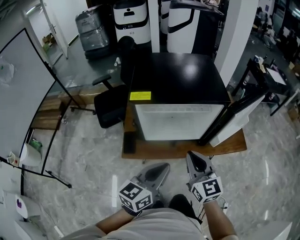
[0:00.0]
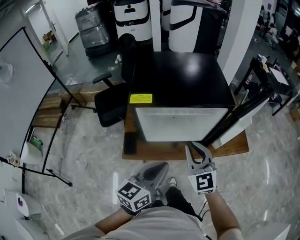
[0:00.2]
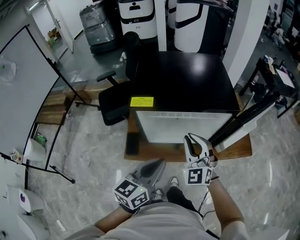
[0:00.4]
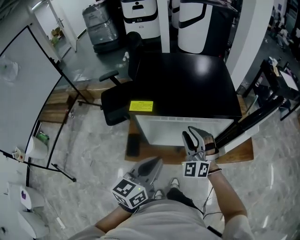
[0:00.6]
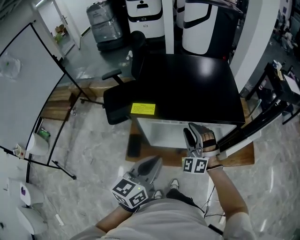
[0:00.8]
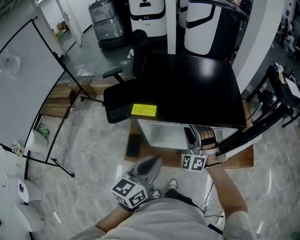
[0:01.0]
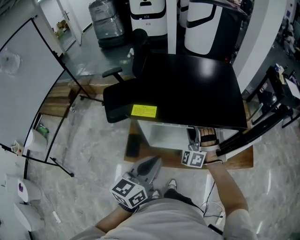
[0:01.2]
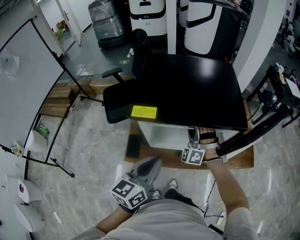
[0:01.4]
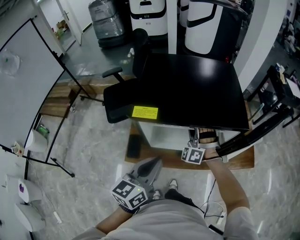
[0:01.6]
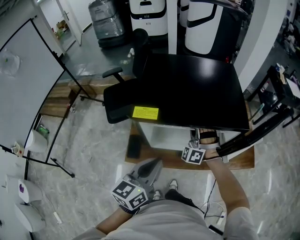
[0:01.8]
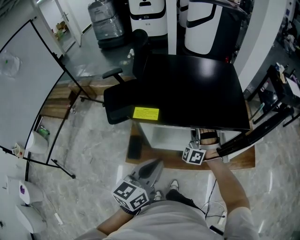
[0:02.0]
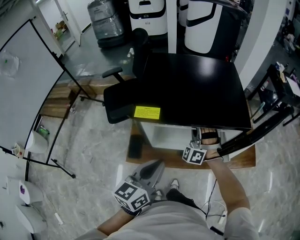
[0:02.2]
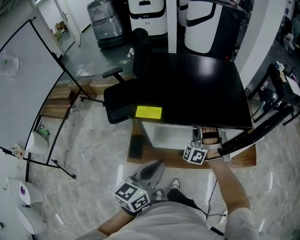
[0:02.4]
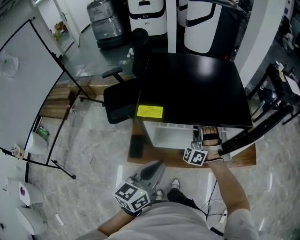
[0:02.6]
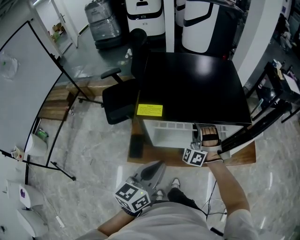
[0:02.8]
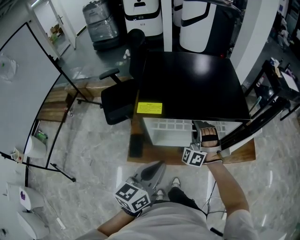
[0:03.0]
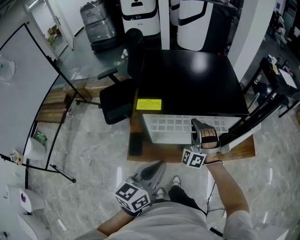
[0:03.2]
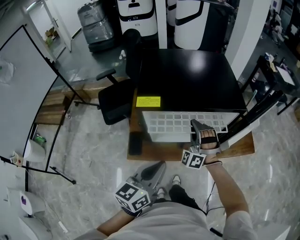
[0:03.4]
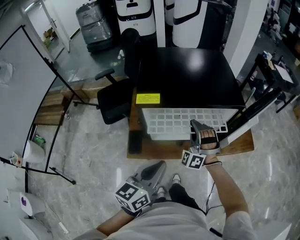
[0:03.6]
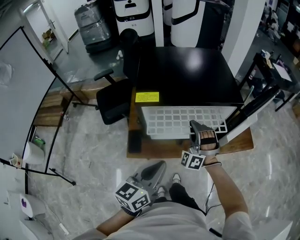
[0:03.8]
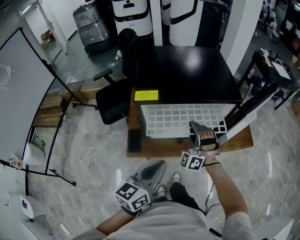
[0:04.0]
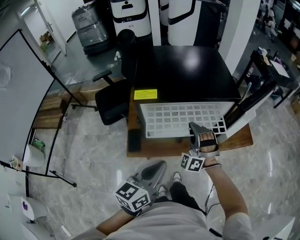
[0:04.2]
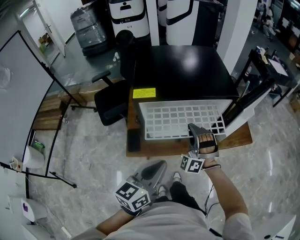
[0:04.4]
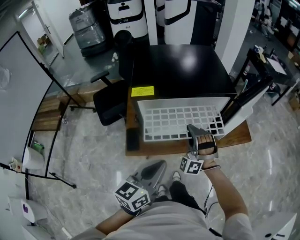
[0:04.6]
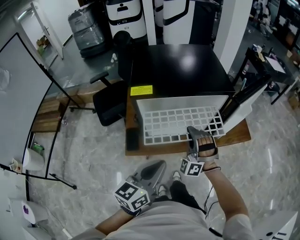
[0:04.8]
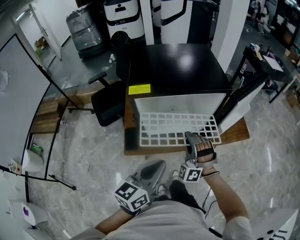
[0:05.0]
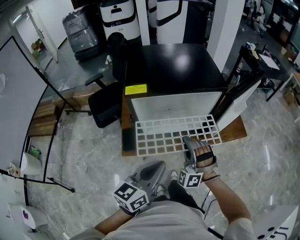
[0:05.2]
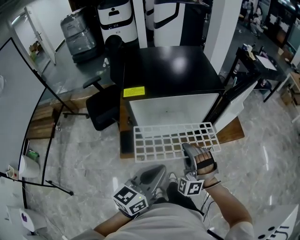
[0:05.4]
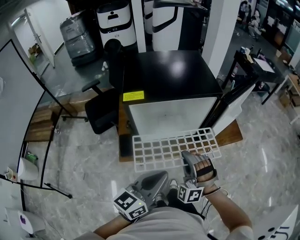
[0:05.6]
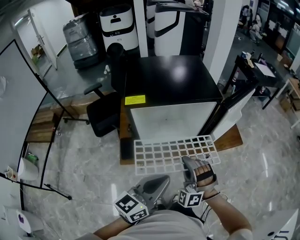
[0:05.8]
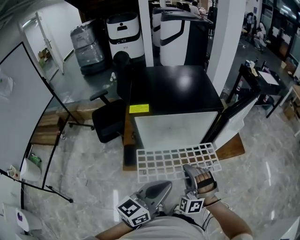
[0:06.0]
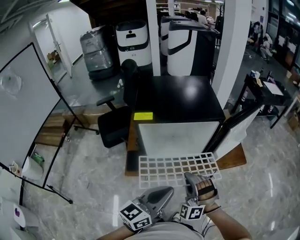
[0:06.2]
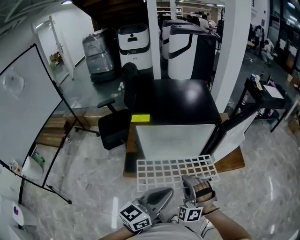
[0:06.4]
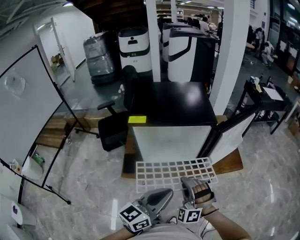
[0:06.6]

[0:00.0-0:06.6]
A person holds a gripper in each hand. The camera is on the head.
0:00.0 to 0:01.6: The right gripper heads forward, covering about 25 cm, rolls counterclockwise, seen from behind, by about 80 degrees, and opens its fingers; the left gripper goes roughly 10 cm forward and to the left.
0:01.6 to 0:03.2: The right gripper shifts approximately 5 cm backward, and closes.
0:03.2 to 0:05.0: The right gripper shifts some 15 cm backward. Meanwhile the left gripper heads backward, covering about 5 cm.
0:05.0 to 0:06.6: The left gripper is displaced to the right and upward by roughly 10 cm, while the right gripper heads backward and to the right, covering some 10 cm.

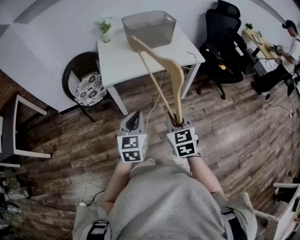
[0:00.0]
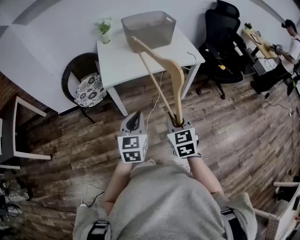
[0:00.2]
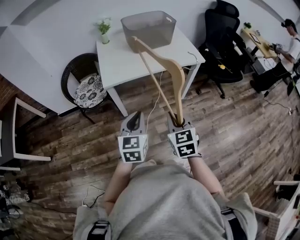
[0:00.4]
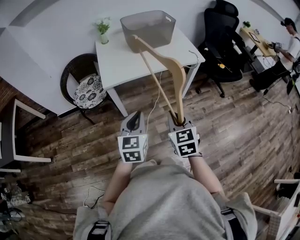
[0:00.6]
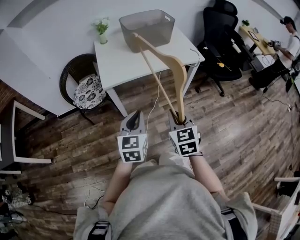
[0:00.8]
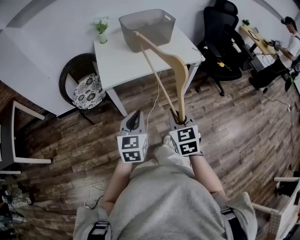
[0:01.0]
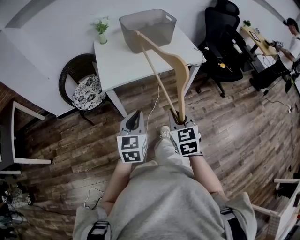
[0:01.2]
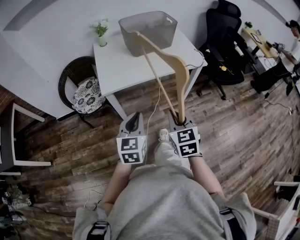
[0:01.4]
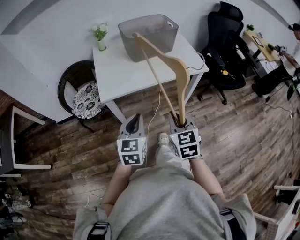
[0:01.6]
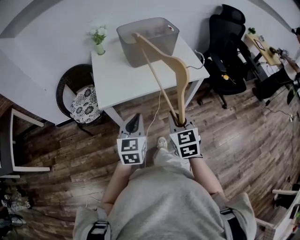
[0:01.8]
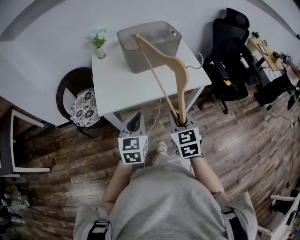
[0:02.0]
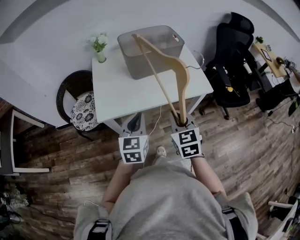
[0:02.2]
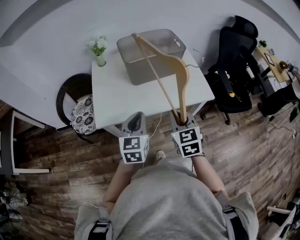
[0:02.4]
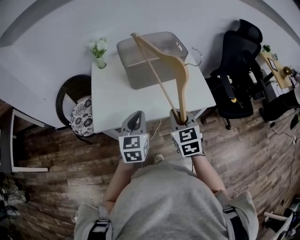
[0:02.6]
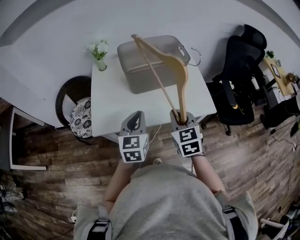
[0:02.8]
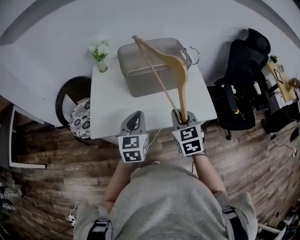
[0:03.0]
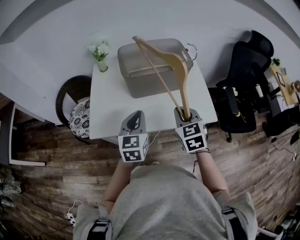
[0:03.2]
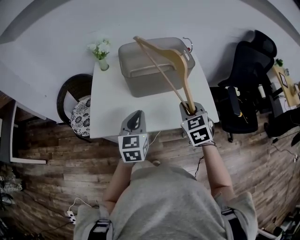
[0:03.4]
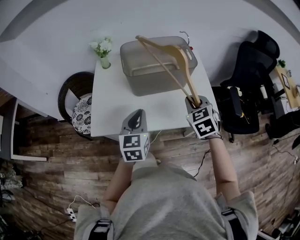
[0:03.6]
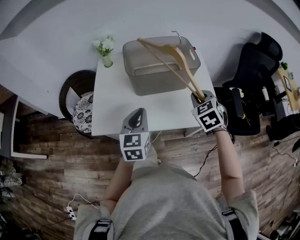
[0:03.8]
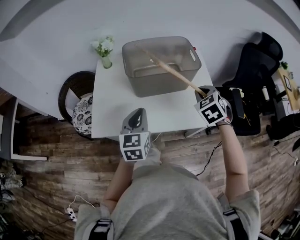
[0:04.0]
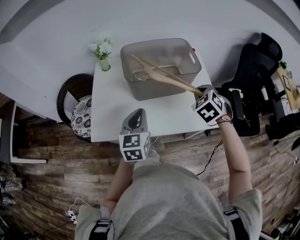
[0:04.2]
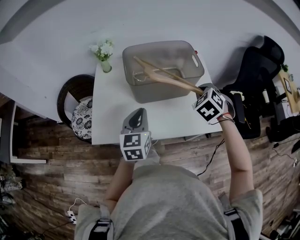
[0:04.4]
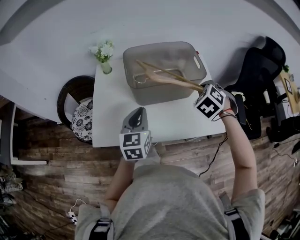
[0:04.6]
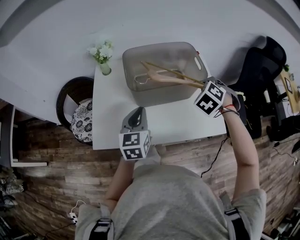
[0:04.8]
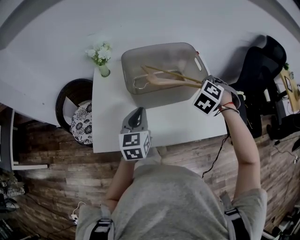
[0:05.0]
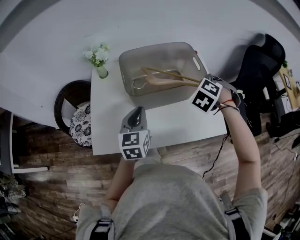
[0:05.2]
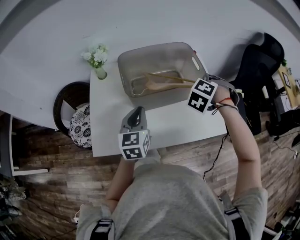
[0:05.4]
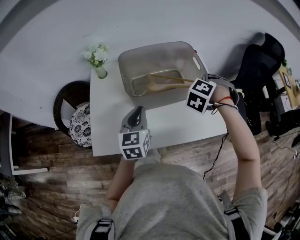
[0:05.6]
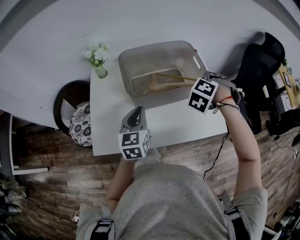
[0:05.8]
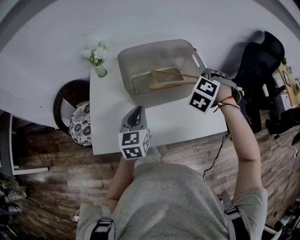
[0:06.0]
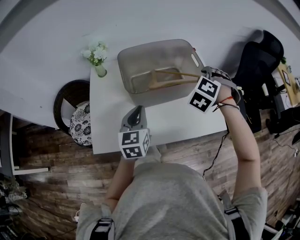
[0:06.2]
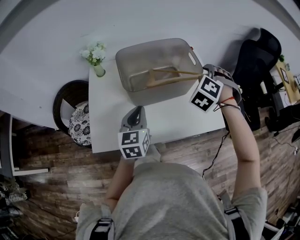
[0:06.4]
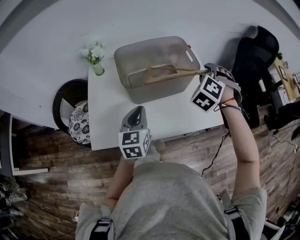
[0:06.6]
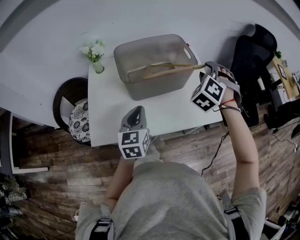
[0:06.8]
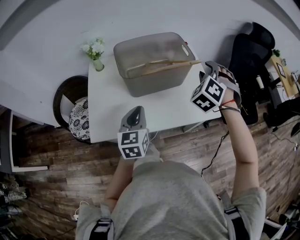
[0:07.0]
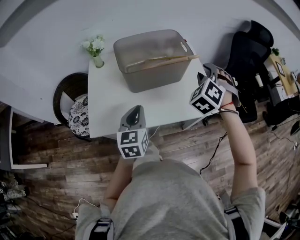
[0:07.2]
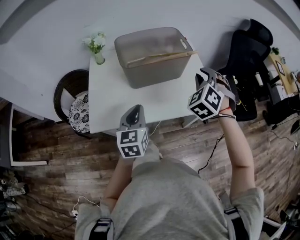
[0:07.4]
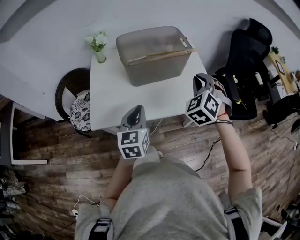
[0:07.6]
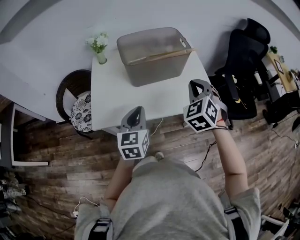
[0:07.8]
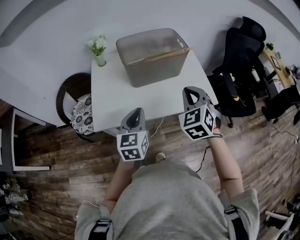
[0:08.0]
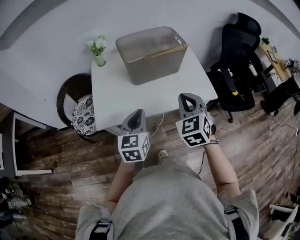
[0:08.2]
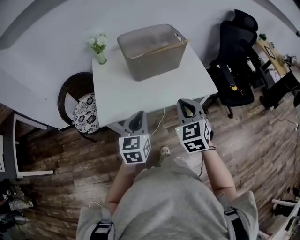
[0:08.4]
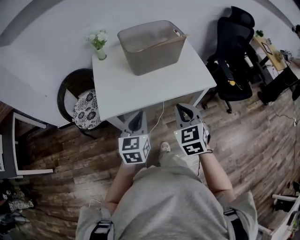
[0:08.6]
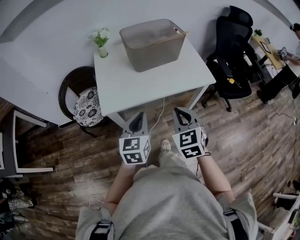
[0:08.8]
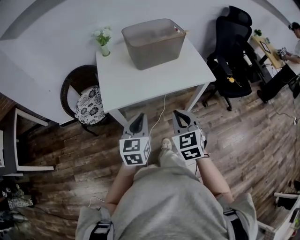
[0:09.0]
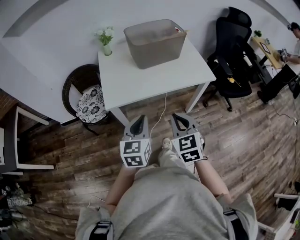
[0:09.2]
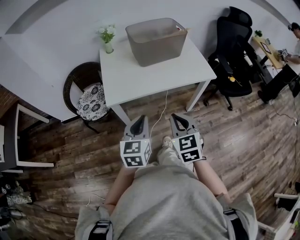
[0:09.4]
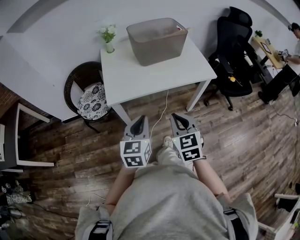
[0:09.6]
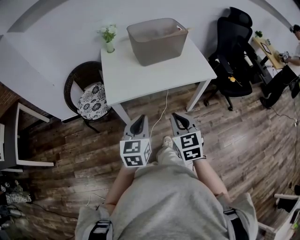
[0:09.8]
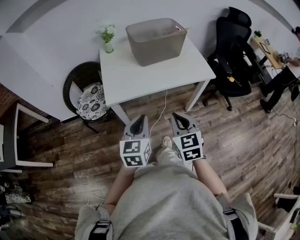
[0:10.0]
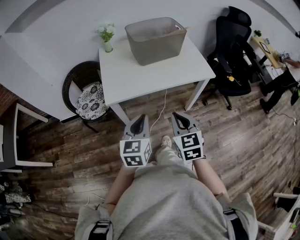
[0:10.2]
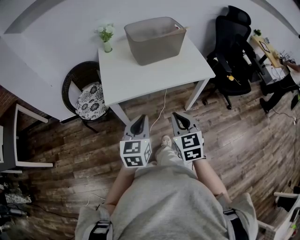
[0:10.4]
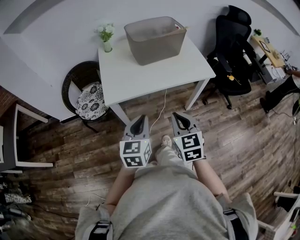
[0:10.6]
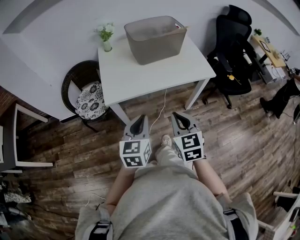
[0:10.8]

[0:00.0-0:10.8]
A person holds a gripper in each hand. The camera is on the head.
0:00.0 to 0:01.6: The two grippers go about 10 cm forward.
0:01.6 to 0:03.0: The two grippers go about 30 cm forward.
0:03.0 to 0:04.6: The left gripper moves forward, roughly 10 cm. The right gripper shifts roughly 20 cm forward and to the right, and swivels about 50 degrees.
0:04.6 to 0:06.2: The right gripper ends up about 5 cm from where it was, and opens.
0:06.2 to 0:07.8: The grippers both shift backward by roughly 20 cm. The right gripper turns by roughly 30 degrees, and closes its fingers.
0:07.8 to 0:09.2: The right gripper goes some 35 cm backward and to the left, and turns by some 30 degrees; the left gripper heads backward, covering approximately 20 cm.
0:09.2 to 0:10.8: The grippers make only small movements.

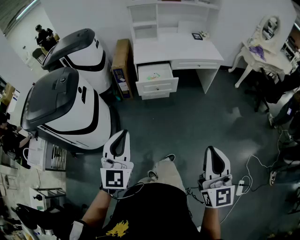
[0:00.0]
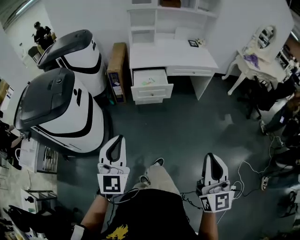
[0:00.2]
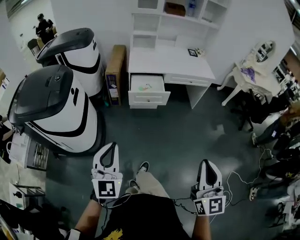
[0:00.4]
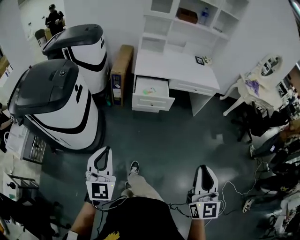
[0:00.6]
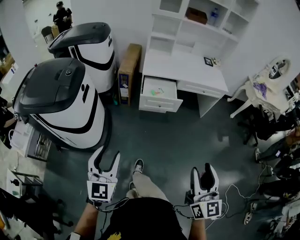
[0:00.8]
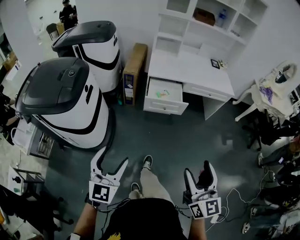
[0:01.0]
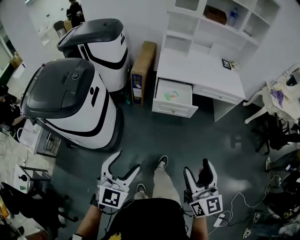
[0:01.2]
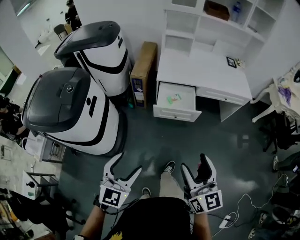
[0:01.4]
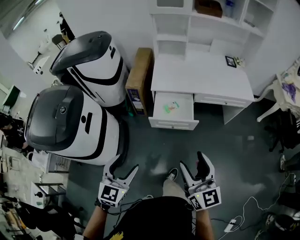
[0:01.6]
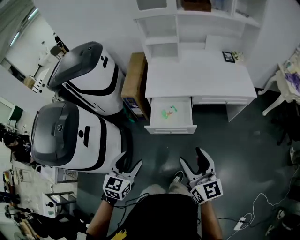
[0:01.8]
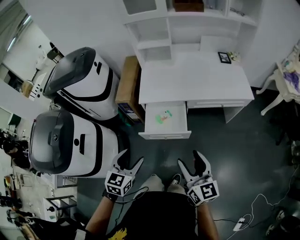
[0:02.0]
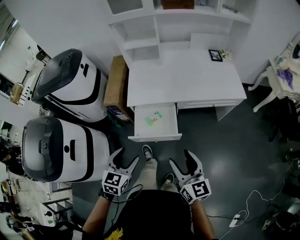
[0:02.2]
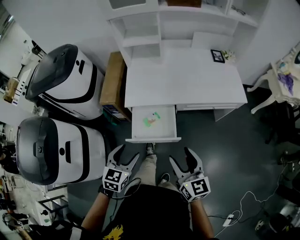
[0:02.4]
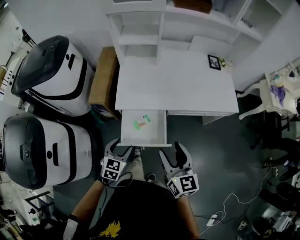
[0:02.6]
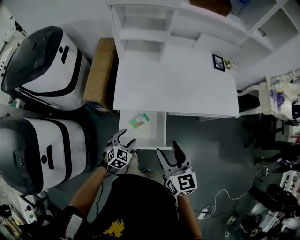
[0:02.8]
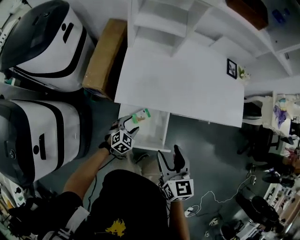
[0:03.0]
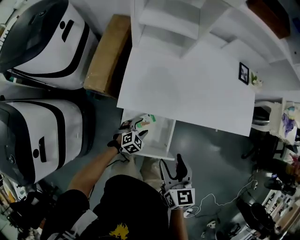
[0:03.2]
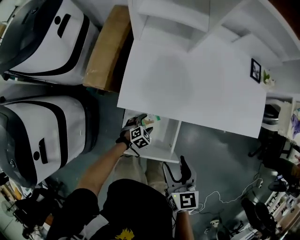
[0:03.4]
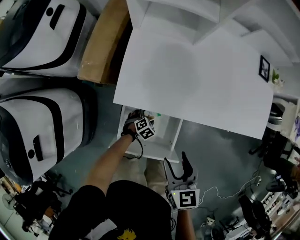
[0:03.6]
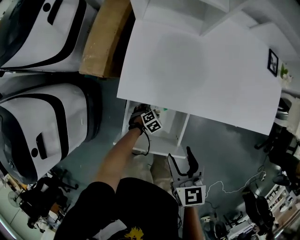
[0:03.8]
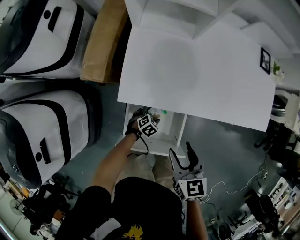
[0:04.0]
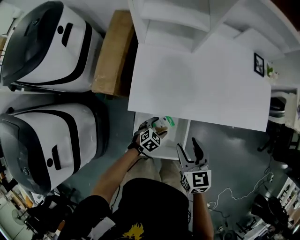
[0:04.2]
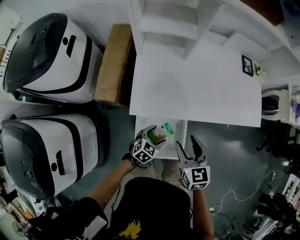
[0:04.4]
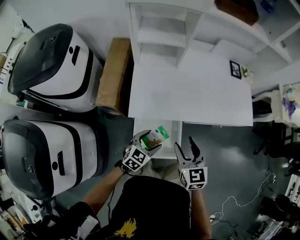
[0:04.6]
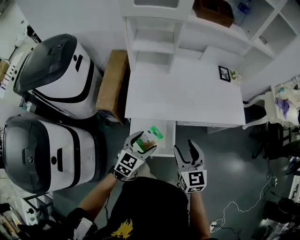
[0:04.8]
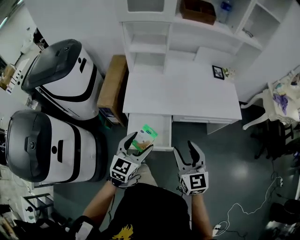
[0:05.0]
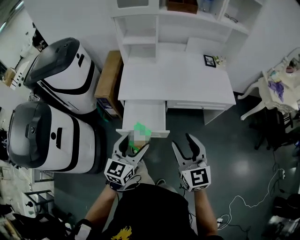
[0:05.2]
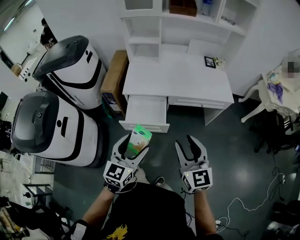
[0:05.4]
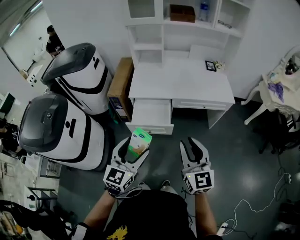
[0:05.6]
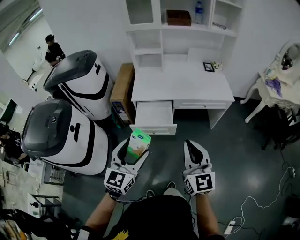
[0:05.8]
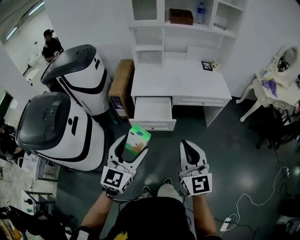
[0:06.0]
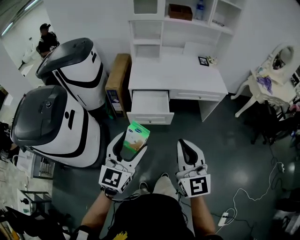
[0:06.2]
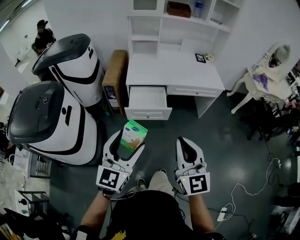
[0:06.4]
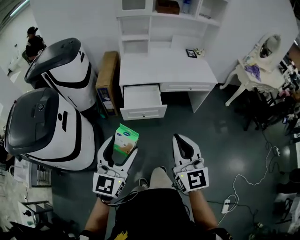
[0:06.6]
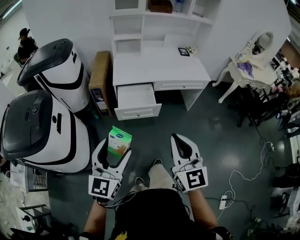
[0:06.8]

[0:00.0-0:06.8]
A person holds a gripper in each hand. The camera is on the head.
0:00.0 to 0:01.4: The left gripper travels forward by roughly 20 cm, and opens its fingers, while the right gripper shifts roughly 30 cm forward, turns by approximately 30 degrees, and opens.
0:01.4 to 0:02.8: Both grippers are carried forward, roughly 60 cm. The right gripper changes its angle by approximately 20 degrees. The left gripper travels downward by approximately 25 cm, and tilts its fingers some 30 degrees downward.
0:02.8 to 0:04.0: The left gripper shifts approximately 35 cm downward and forward, and changes its angle by approximately 30 degrees; the right gripper moves downward and forward, roughly 20 cm.
0:04.0 to 0:05.4: The pair of grippers is taken backward and to the right, roughly 50 cm. The left gripper is displaced upward by approximately 60 cm, and angles its fingers upward, by approximately 50 degrees. Meanwhile the right gripper heads upward, covering about 25 cm, and swivels about 30 degrees.
0:05.4 to 0:06.8: Both grippers move backward and to the left, roughly 30 cm. The right gripper closes up.
